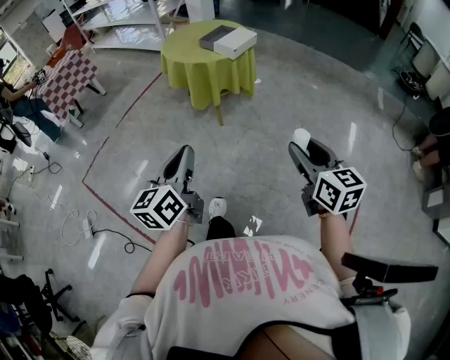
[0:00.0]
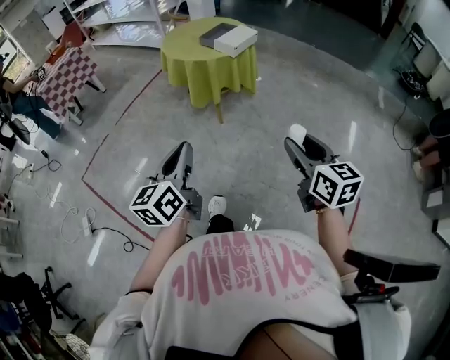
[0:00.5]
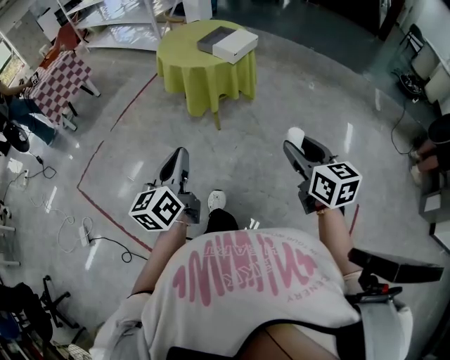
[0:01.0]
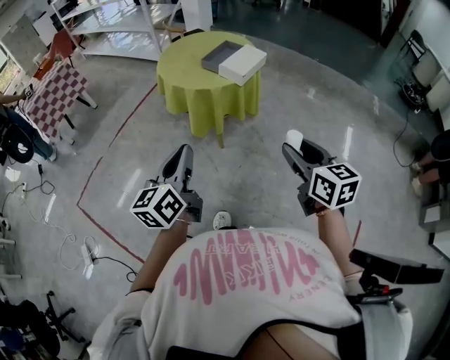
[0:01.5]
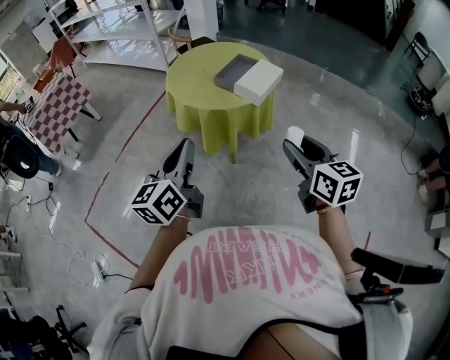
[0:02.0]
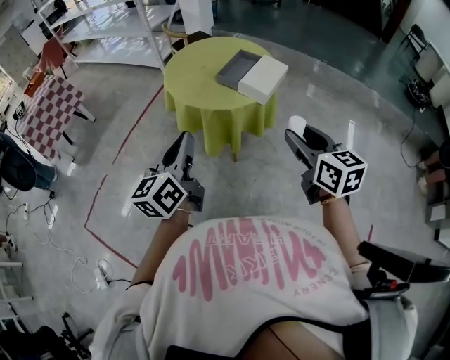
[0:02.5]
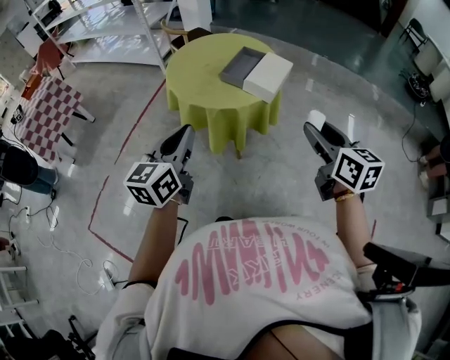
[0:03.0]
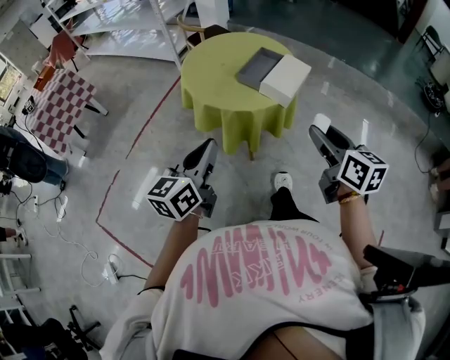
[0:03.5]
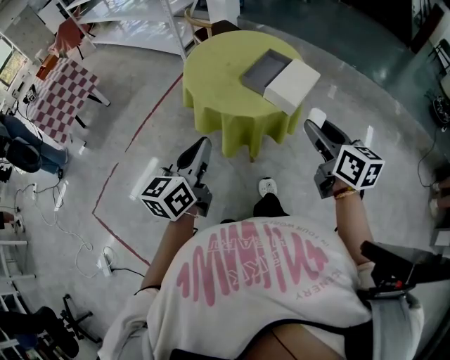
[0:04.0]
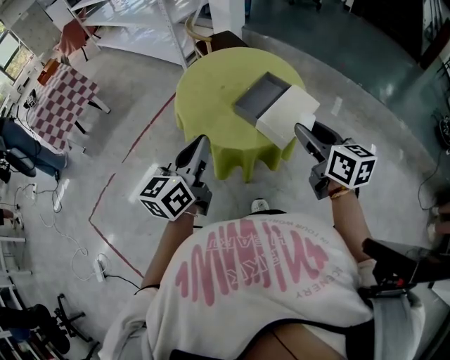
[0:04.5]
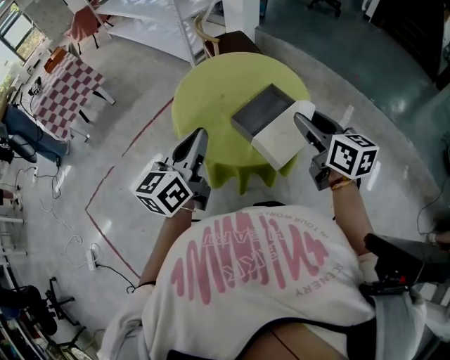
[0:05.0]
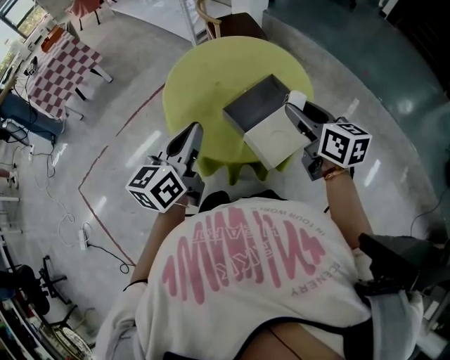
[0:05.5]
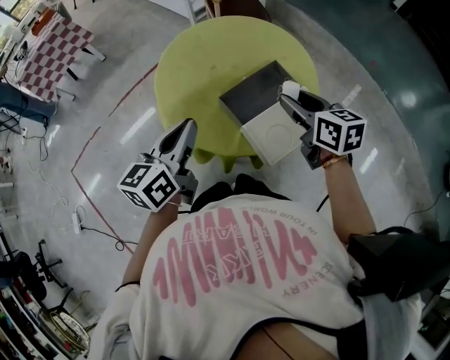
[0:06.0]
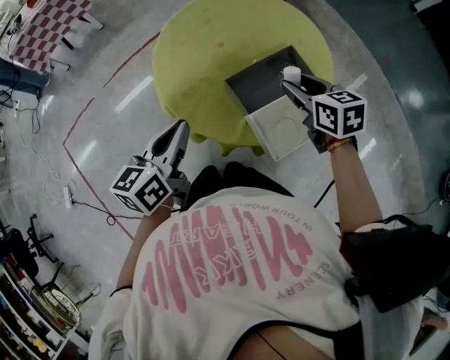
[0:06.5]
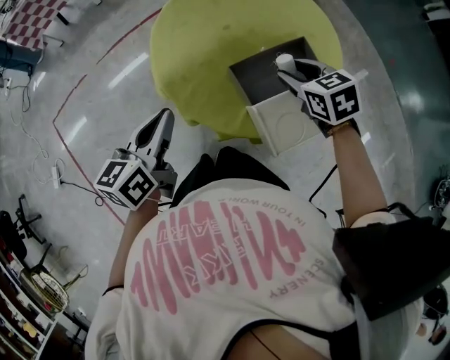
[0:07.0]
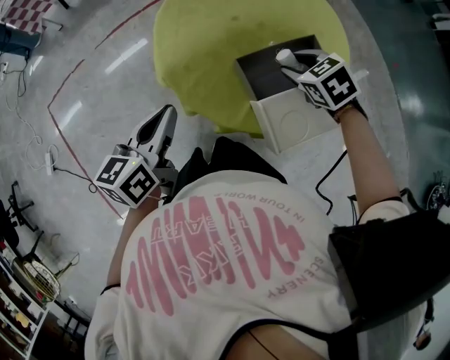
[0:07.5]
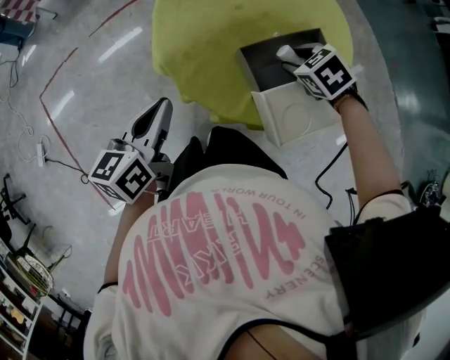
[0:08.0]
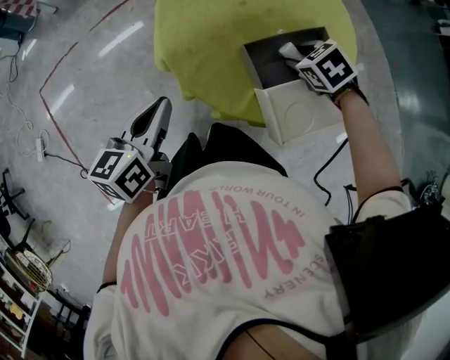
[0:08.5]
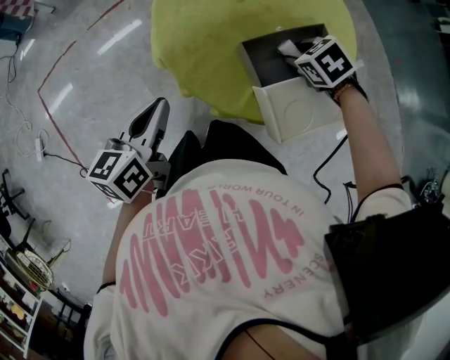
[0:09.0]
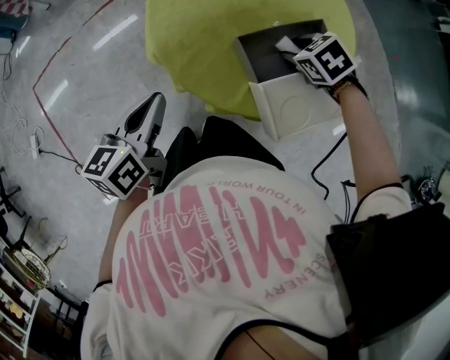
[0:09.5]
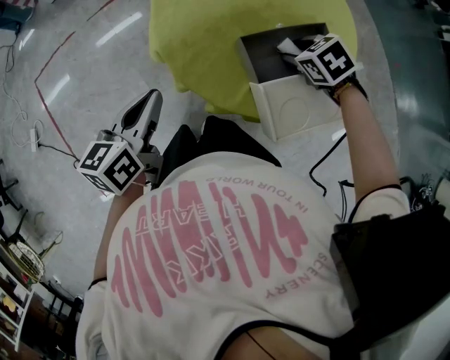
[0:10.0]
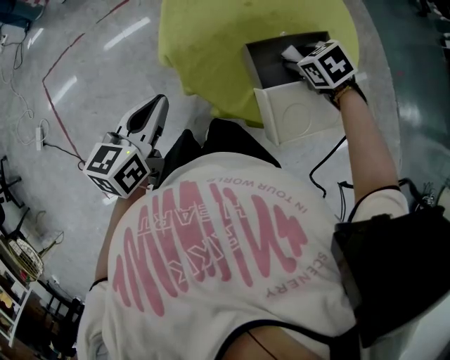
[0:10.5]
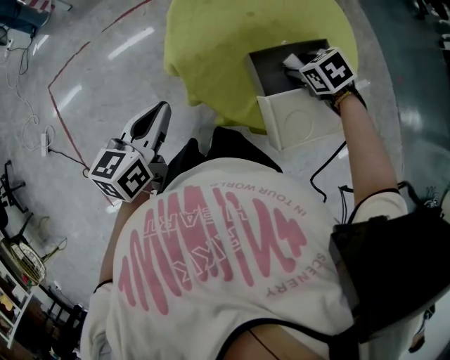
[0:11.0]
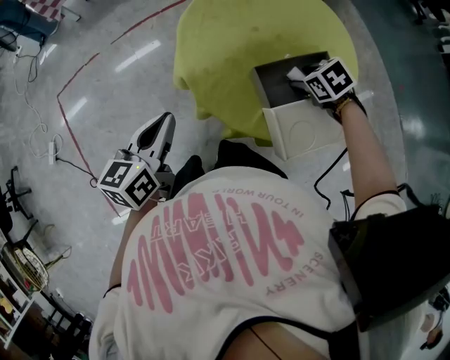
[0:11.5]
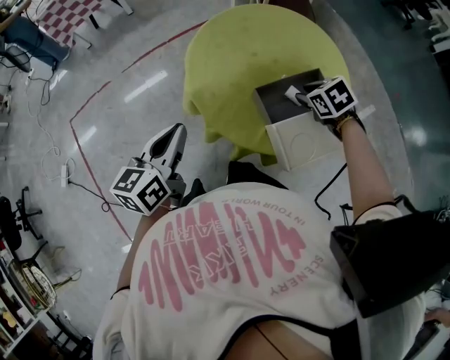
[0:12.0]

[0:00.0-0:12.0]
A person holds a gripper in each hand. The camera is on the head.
0:00.0 to 0:02.0: The pair of grippers is taken forward, some 40 cm.
0:02.0 to 0:04.0: The right gripper shifts some 20 cm forward. Meanwhile the left gripper shifts roughly 15 cm forward and downward.
0:04.0 to 0:06.0: The left gripper is displaced forward and to the right by some 30 cm, while the right gripper moves forward, about 35 cm, and rotates roughly 30 degrees.
0:06.0 to 0:08.0: The left gripper shifts roughly 15 cm downward and to the left; the right gripper is displaced downward and forward by roughly 25 cm, and tilts its fingers roughly 40 degrees downward.
0:08.0 to 0:10.0: The grippers move only a little.
0:10.0 to 0:12.0: The two grippers go about 5 cm upward.

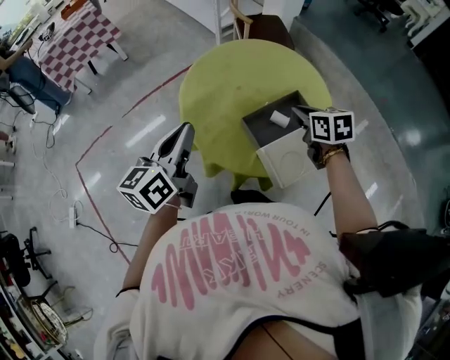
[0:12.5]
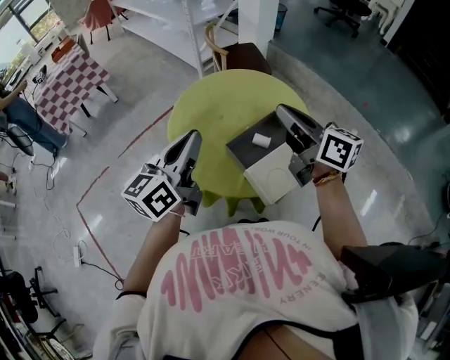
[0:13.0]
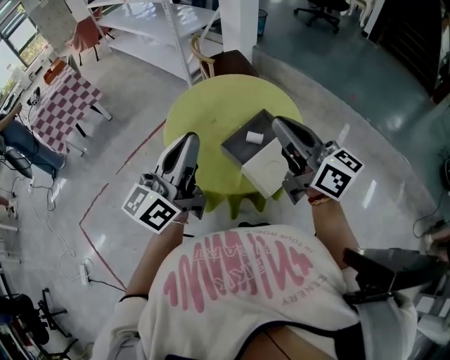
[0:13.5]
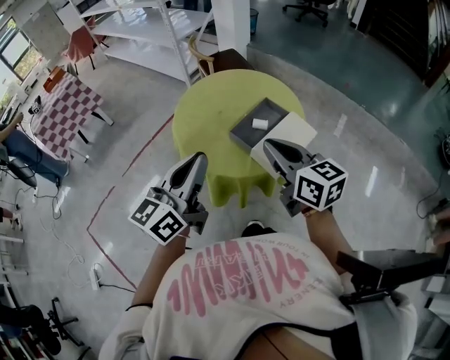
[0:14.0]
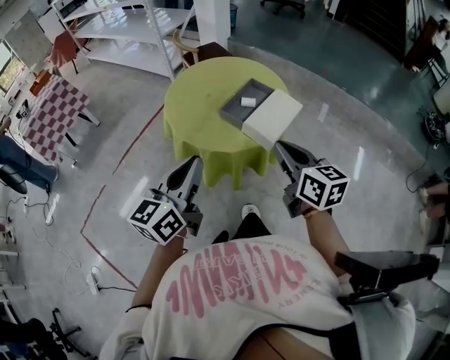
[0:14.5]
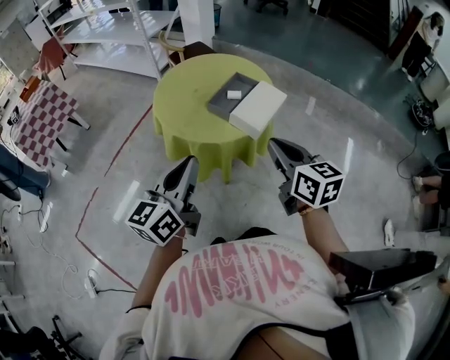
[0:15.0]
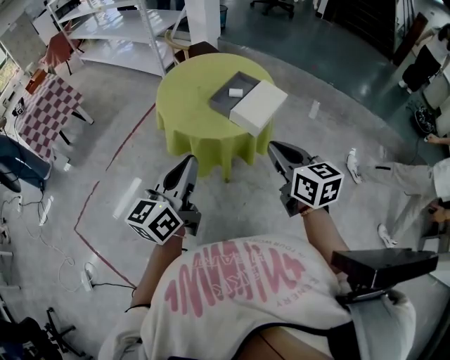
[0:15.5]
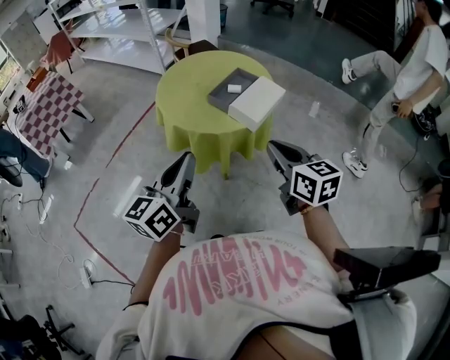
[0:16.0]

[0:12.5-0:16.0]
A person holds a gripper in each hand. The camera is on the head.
0:12.5 to 0:14.5: The left gripper travels backward by approximately 25 cm, and turns by some 30 degrees. Meanwhile the right gripper goes roughly 35 cm backward, and changes its angle by some 40 degrees.
0:14.5 to 0:16.0: Both grippers travel together backward, about 10 cm.

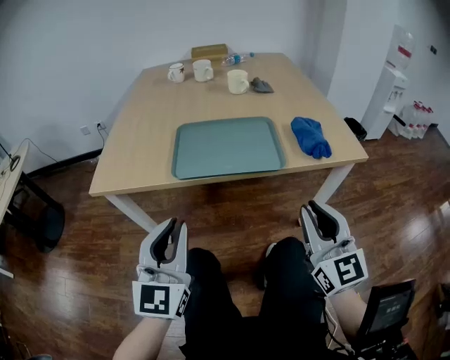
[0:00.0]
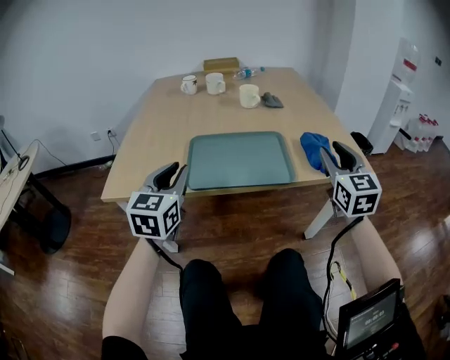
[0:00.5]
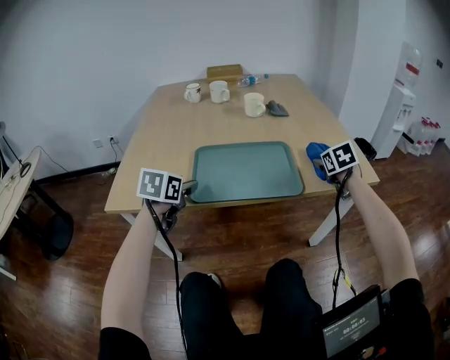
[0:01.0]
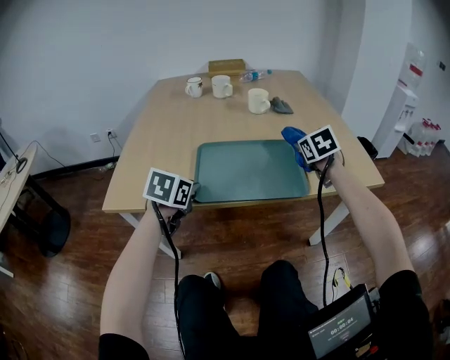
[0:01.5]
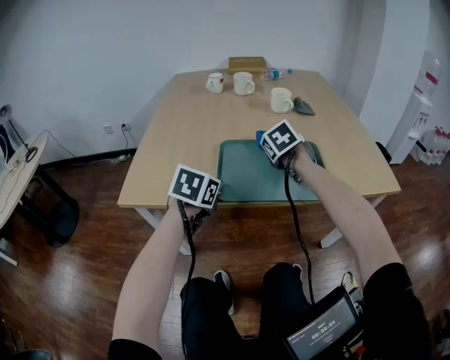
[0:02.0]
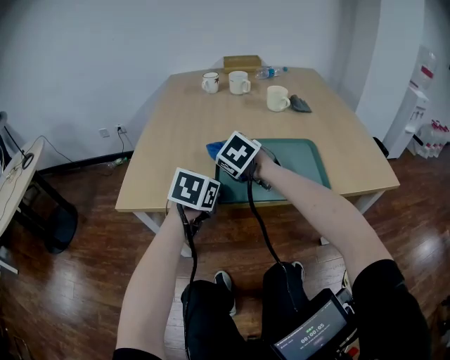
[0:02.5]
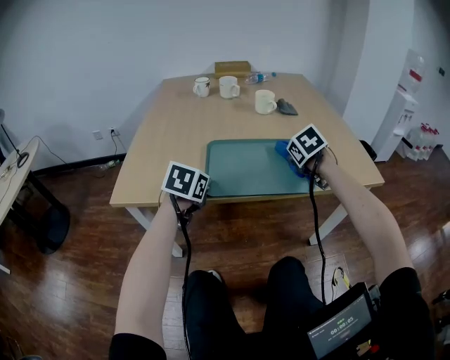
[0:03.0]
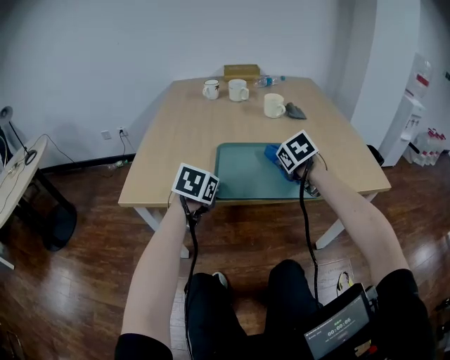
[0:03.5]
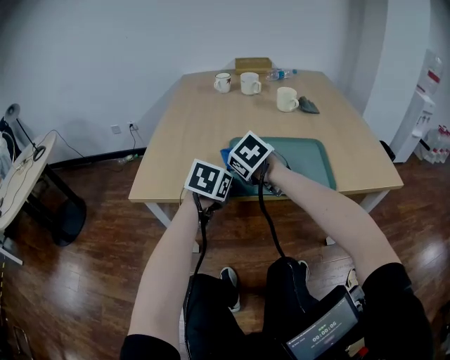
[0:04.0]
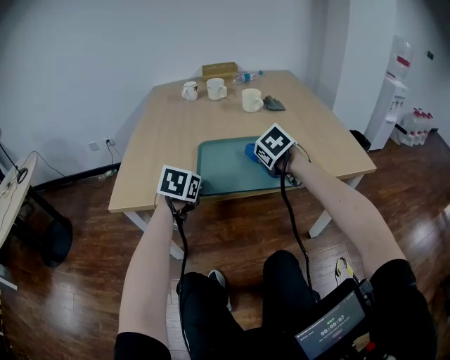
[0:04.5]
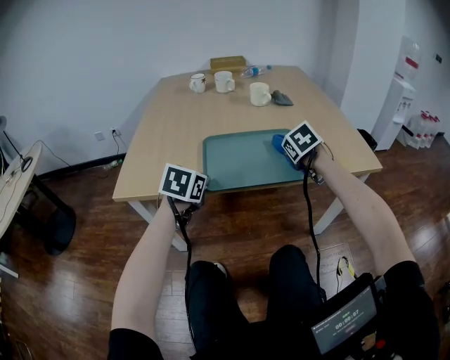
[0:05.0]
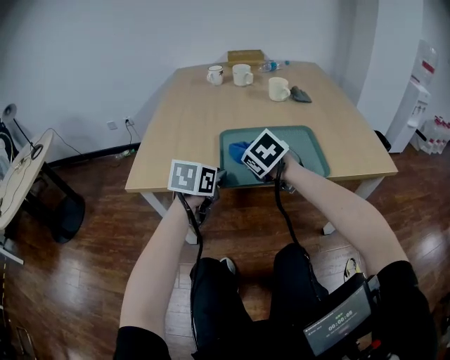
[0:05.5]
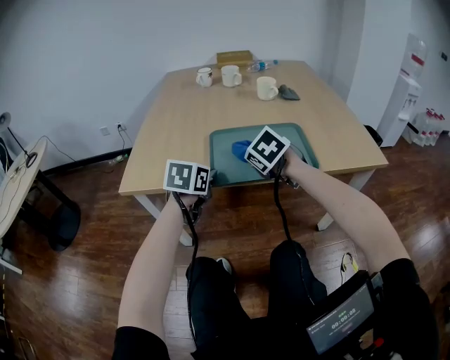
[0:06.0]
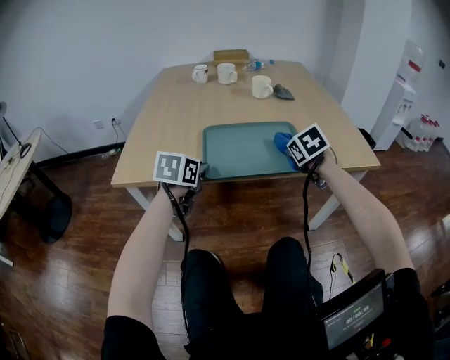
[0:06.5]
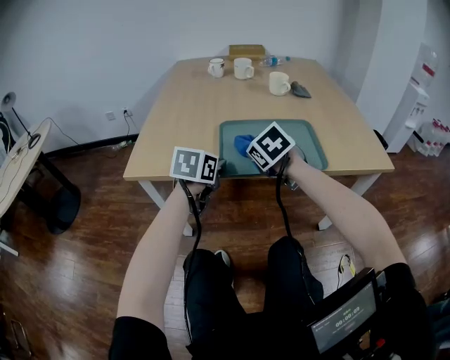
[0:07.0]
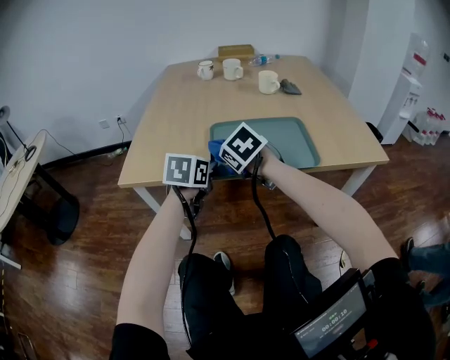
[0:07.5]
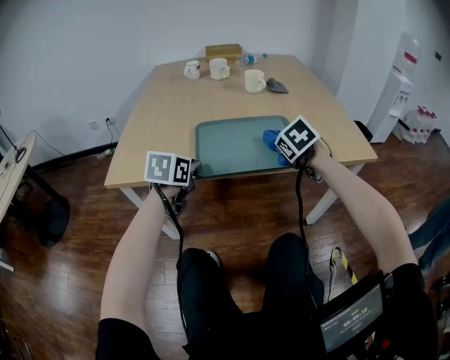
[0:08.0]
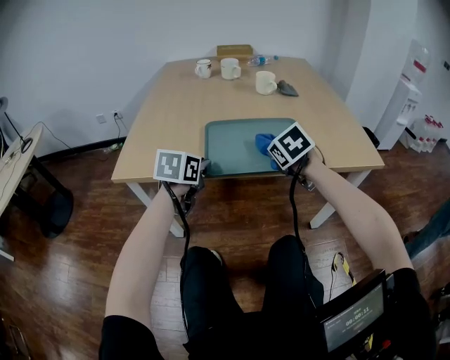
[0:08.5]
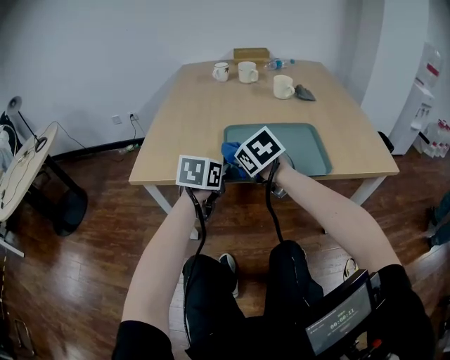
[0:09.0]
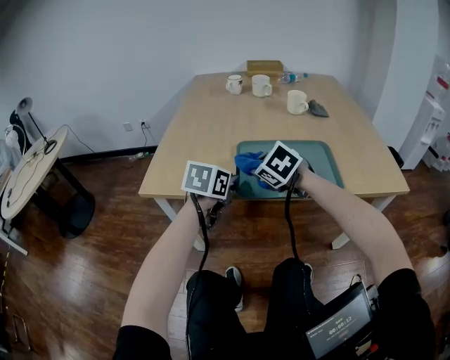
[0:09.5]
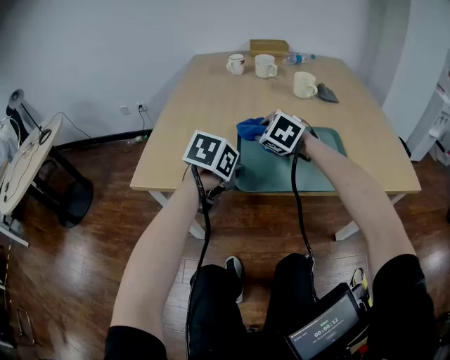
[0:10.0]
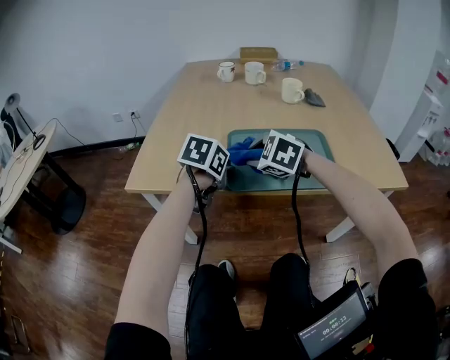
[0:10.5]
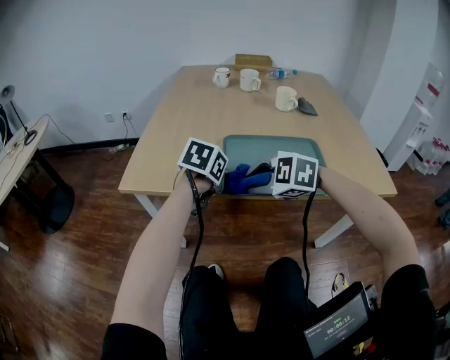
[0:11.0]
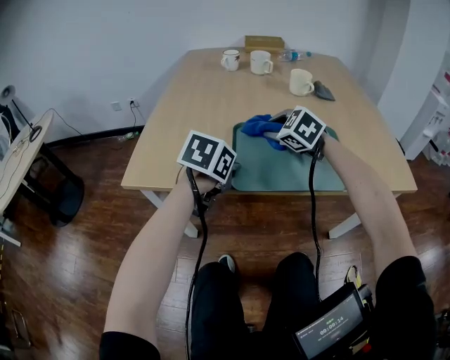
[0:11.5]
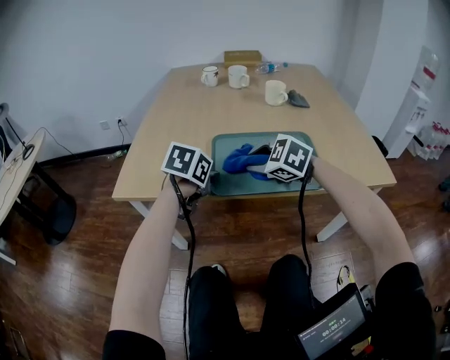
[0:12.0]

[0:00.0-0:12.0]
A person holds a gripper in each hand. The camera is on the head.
0:00.0 to 0:02.0: The left gripper heads forward and downward, covering roughly 25 cm, points its fingers roughly 50 degrees further downward, and opens, then closes again; the right gripper goes roughly 40 cm forward and to the left, angles its fingers downward, by some 50 degrees, and opens, then closes once more.
0:02.0 to 0:04.0: The right gripper goes left and right, roughly 25 cm each way, reversing 2 times.
0:04.0 to 0:06.0: The right gripper goes roughly 10 cm to the right.
0:06.0 to 0:08.0: The right gripper swings left and right, some 25 cm each way, with 2 reversals.
0:08.0 to 0:10.0: The right gripper goes some 25 cm to the left and forward, and swivels roughly 30 degrees.
0:10.0 to 0:12.0: The right gripper moves forward and backward over some 20 cm, changing direction 2 times.
